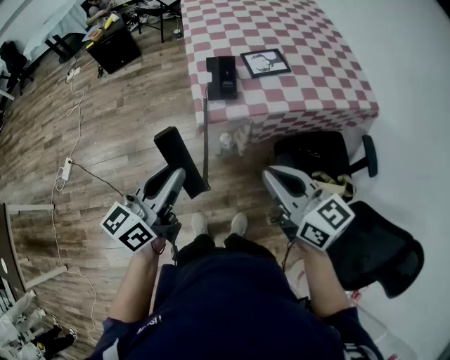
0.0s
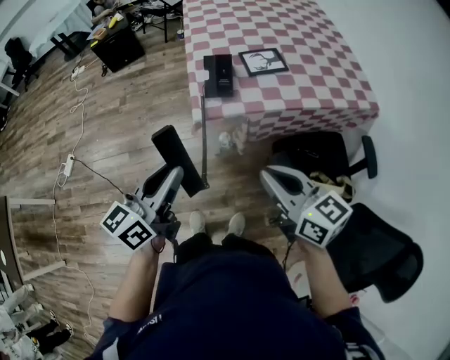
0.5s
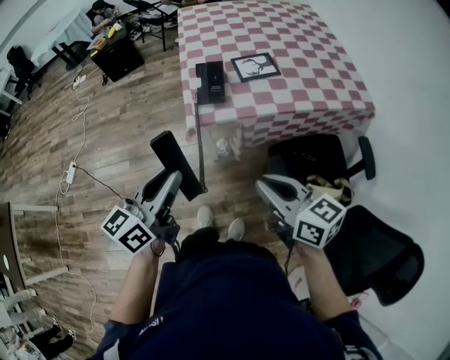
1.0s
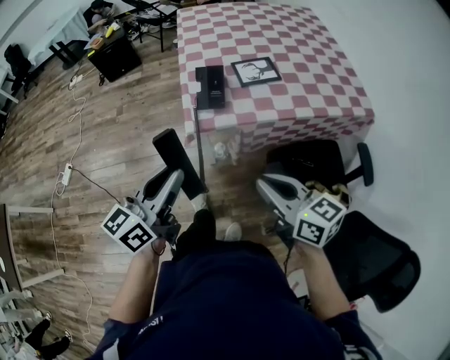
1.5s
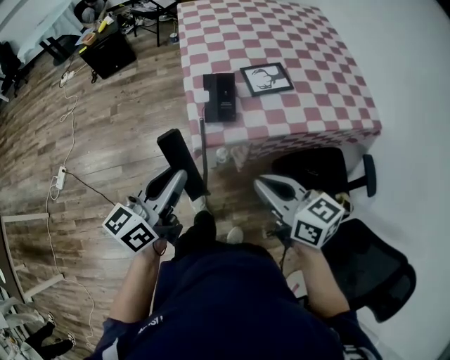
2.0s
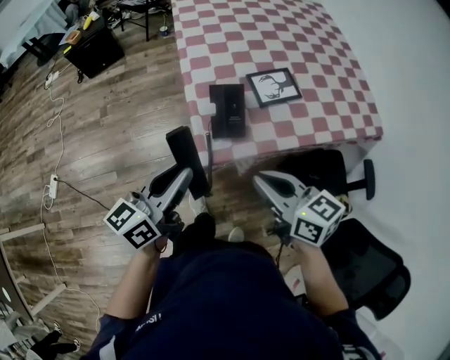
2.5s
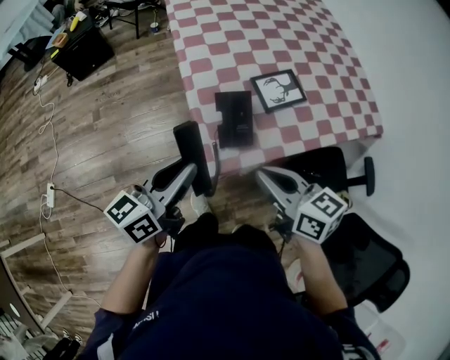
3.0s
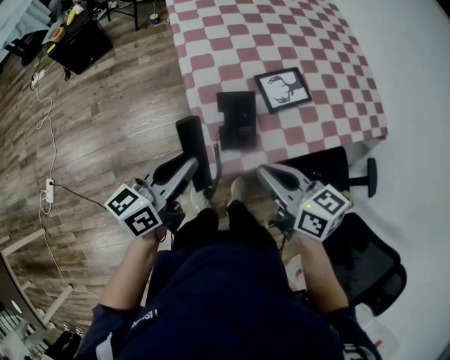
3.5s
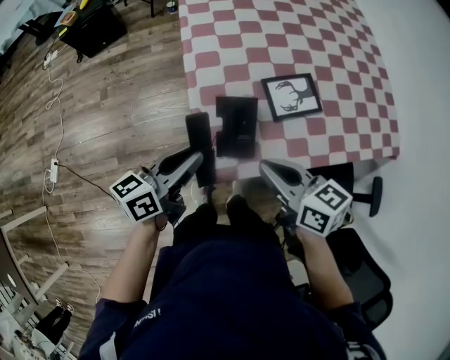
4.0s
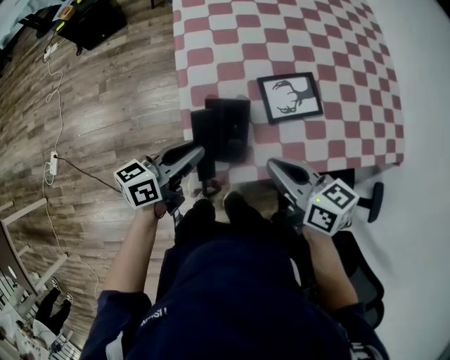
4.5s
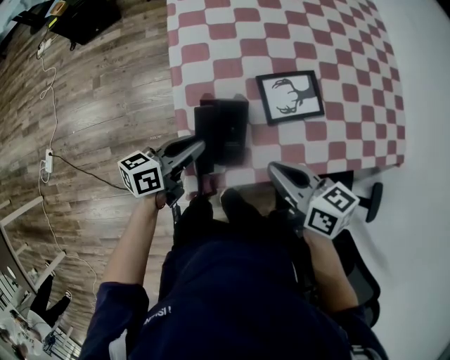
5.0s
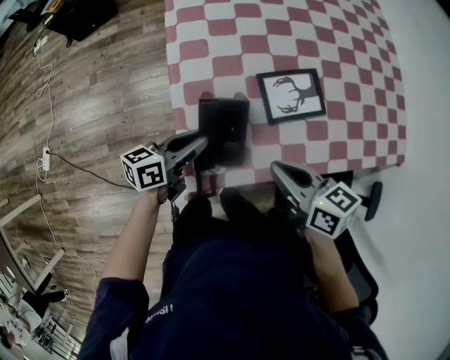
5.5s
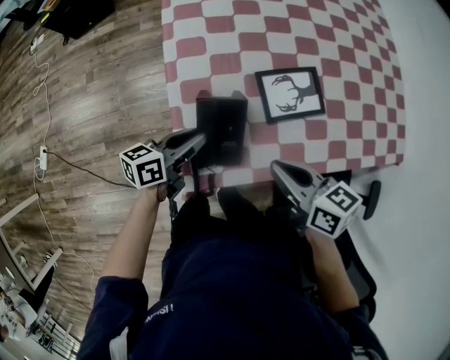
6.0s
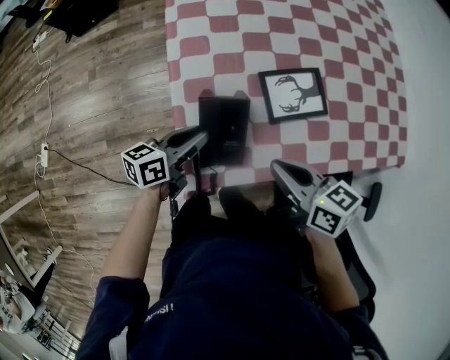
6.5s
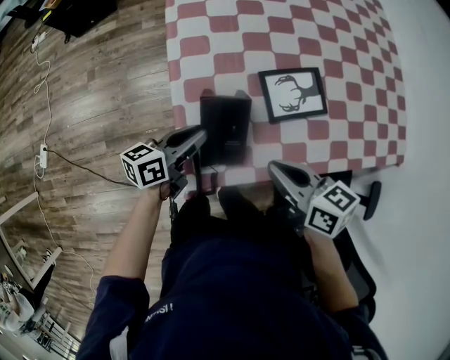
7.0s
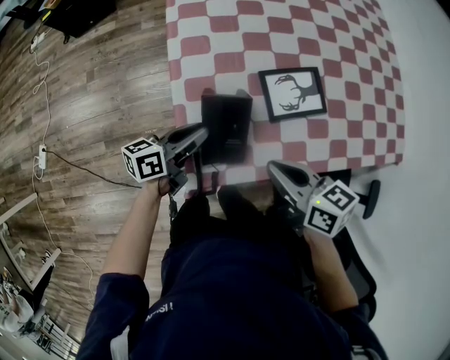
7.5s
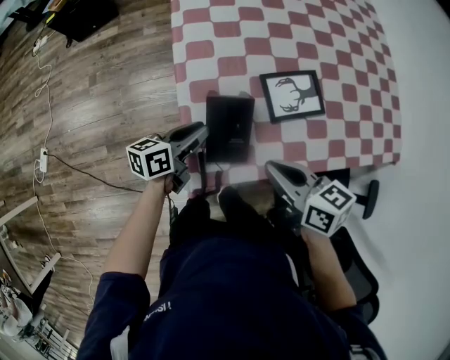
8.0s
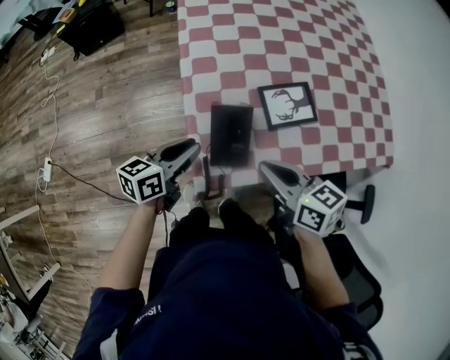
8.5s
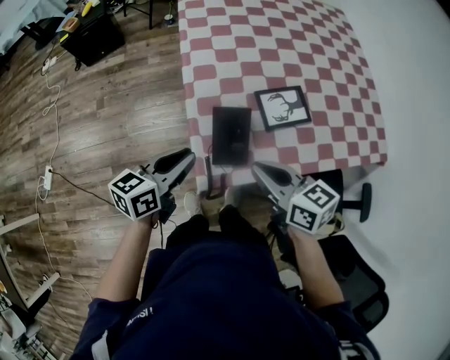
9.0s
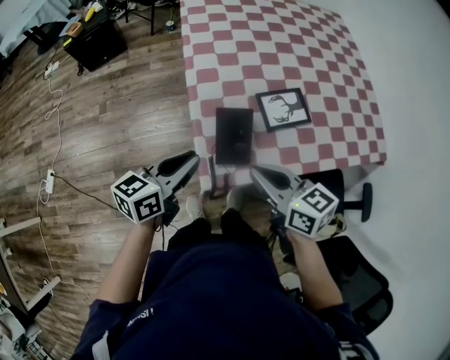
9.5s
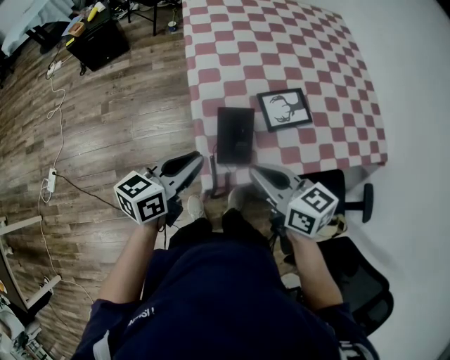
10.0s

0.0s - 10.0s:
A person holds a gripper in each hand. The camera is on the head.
0.0s - 2.0s: The right gripper is displaced forward and downward by approximately 10 cm, while the left gripper is displaced forward by some 10 cm.
2.0s - 4.0s: The left gripper moves forward and downward, roughly 25 cm; the right gripper shifts some 25 cm forward.
4.0s - 6.0s: The right gripper moves to the right and downward, about 10 cm; the left gripper is displaced downward, forward and to the right by roughly 15 cm.
6.0s - 8.0s: The grippers make only small movements.
8.0s - 10.0s: The left gripper is displaced upward and backward by some 20 cm. The right gripper moves upward and to the left, roughly 10 cm.

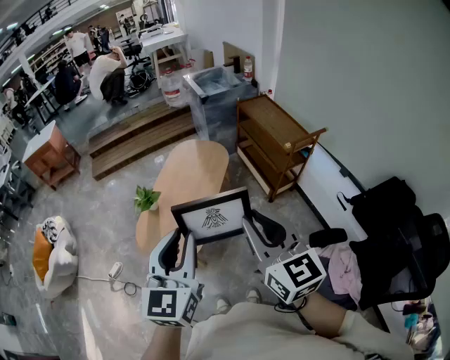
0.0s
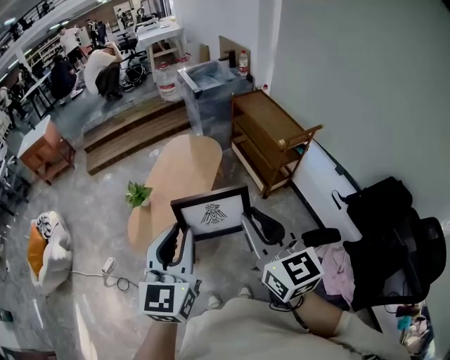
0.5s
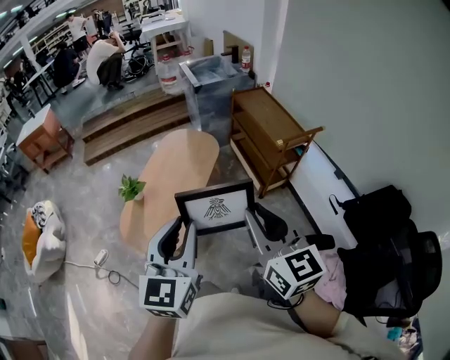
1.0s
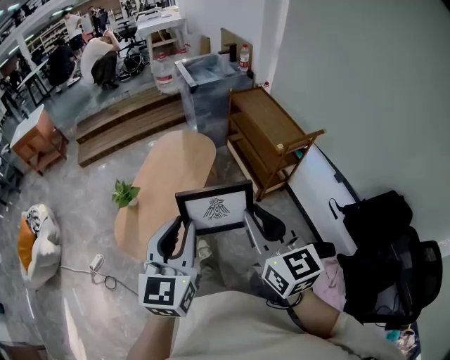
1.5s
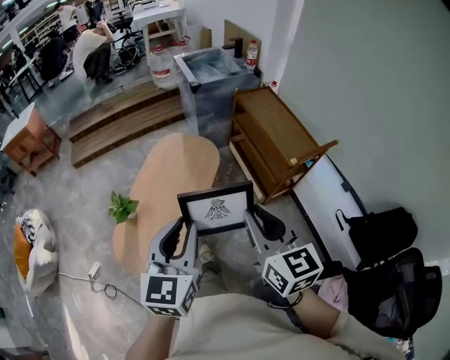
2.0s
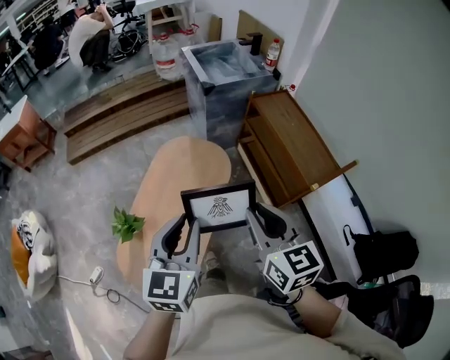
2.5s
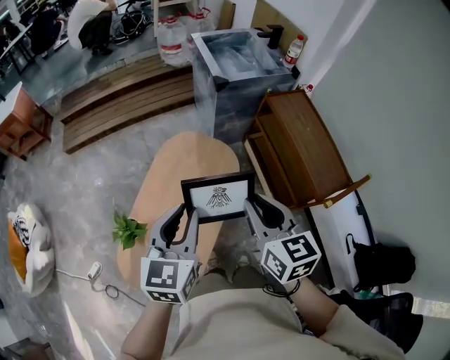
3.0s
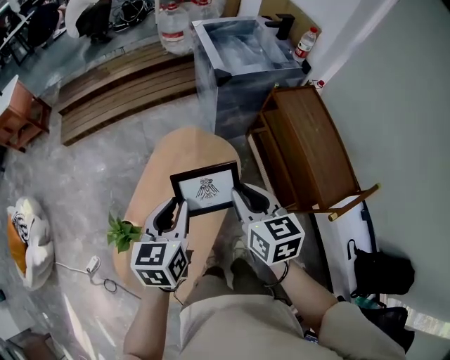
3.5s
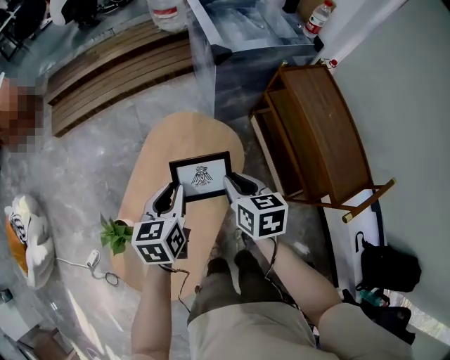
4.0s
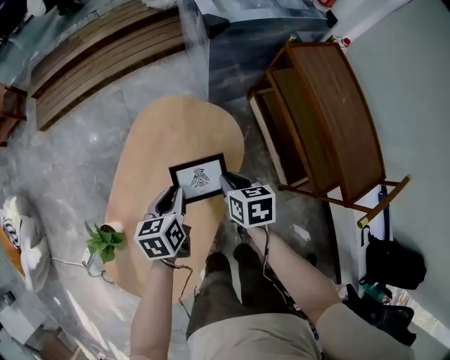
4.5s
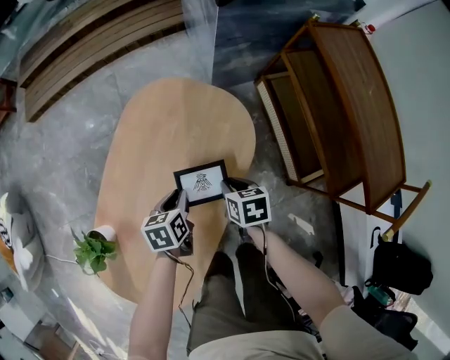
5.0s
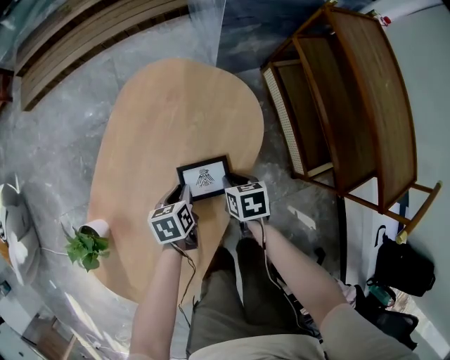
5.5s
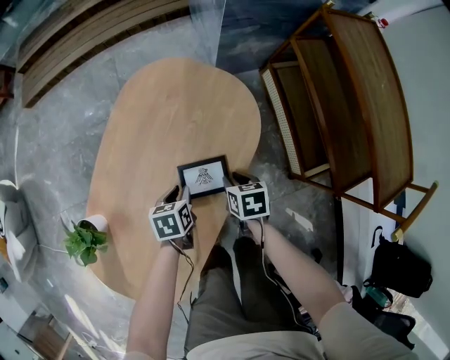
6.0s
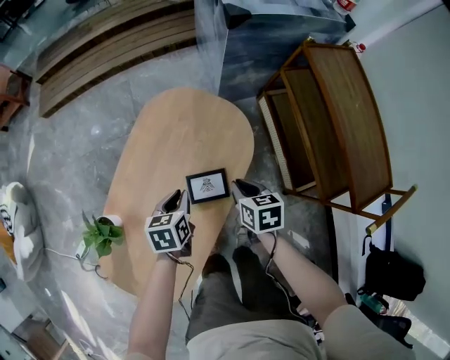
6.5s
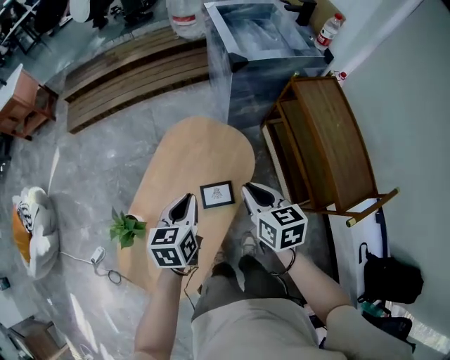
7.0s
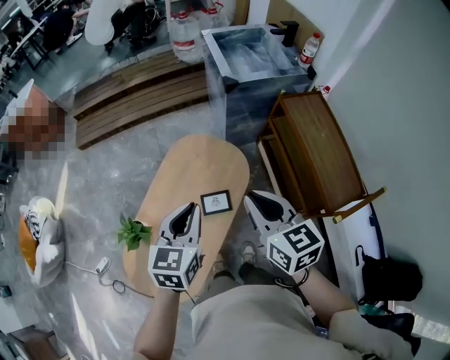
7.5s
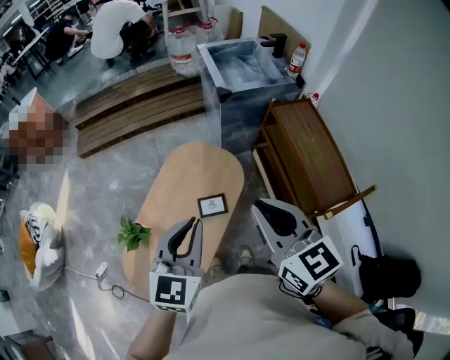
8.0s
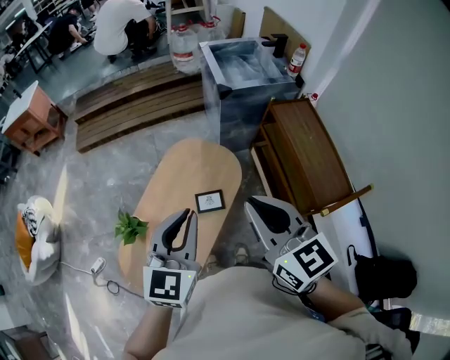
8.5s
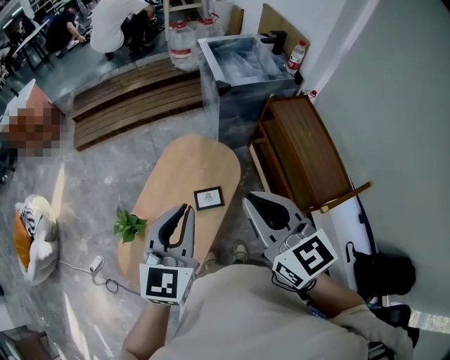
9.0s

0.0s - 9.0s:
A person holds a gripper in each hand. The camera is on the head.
0.0s - 2.0s: Both grippers move forward, about 25 cm.
2.0s - 4.5s: Both grippers are carried forward, approximately 50 cm. Both grippers travel together downward, some 50 cm. The left gripper points its fingers about 30 degrees further downward. Meanwhile the right gripper points its fingers roughly 40 degrees further downward.
4.5s - 7.0s: The grippers both shift upward by about 20 cm.
7.0s - 9.0s: The grippers both shift upward and backward by roughly 30 cm. The left gripper changes its angle by some 30 degrees; the right gripper swivels some 30 degrees.

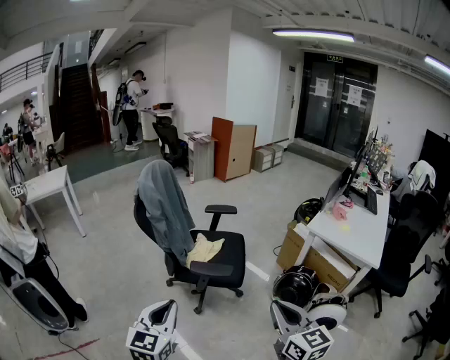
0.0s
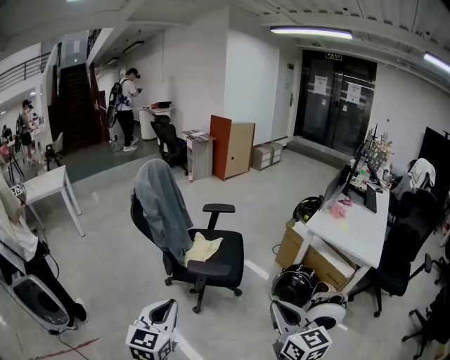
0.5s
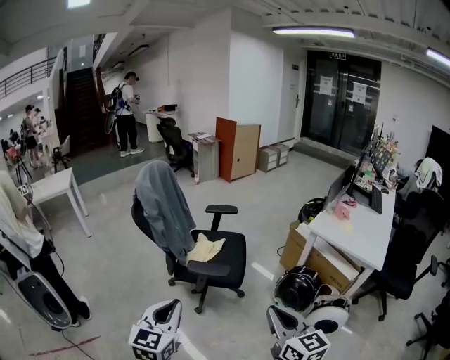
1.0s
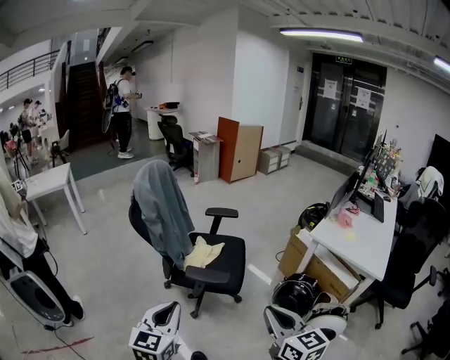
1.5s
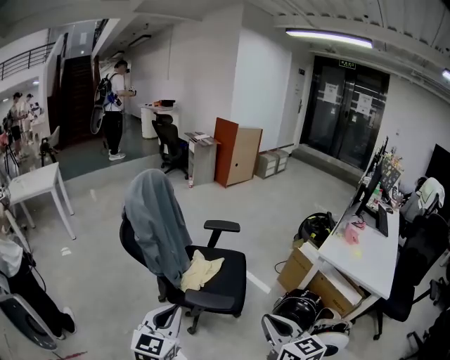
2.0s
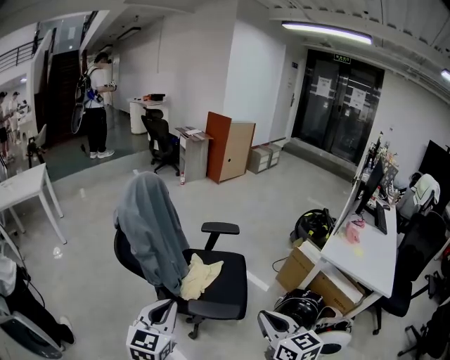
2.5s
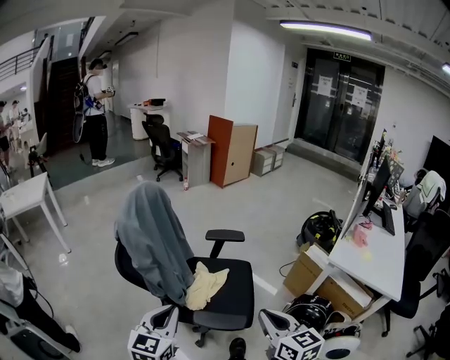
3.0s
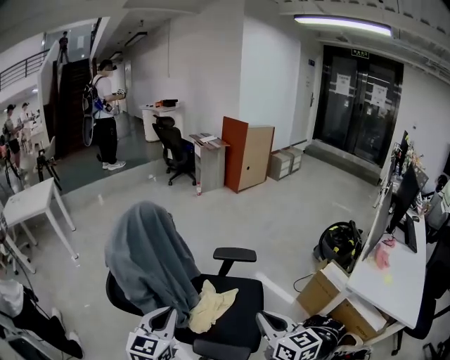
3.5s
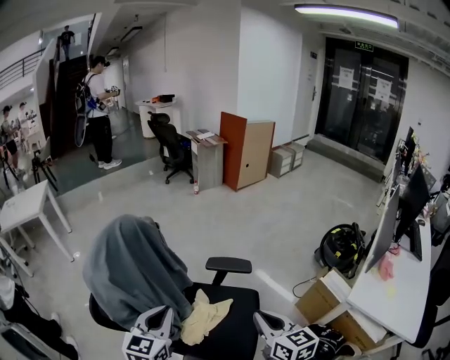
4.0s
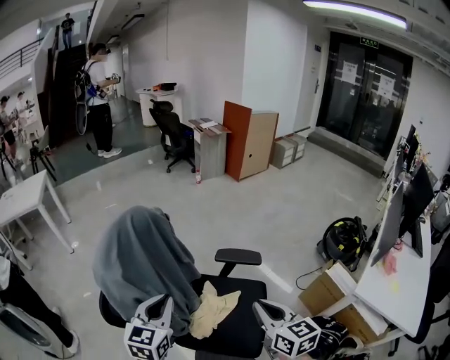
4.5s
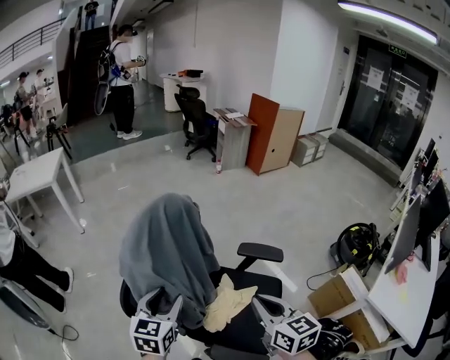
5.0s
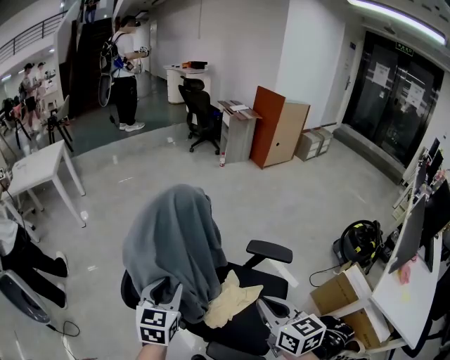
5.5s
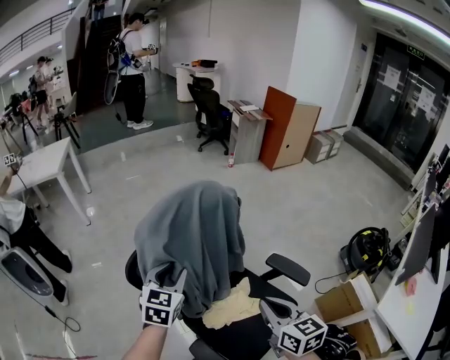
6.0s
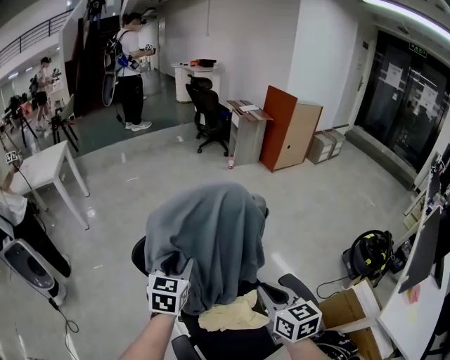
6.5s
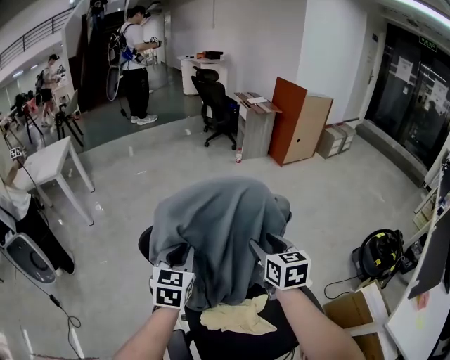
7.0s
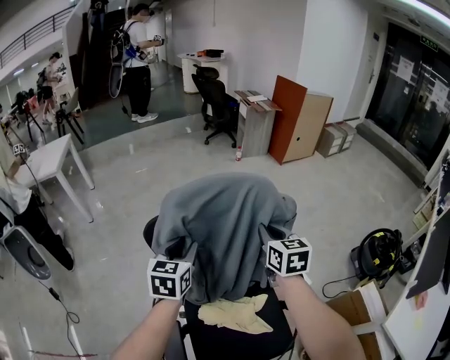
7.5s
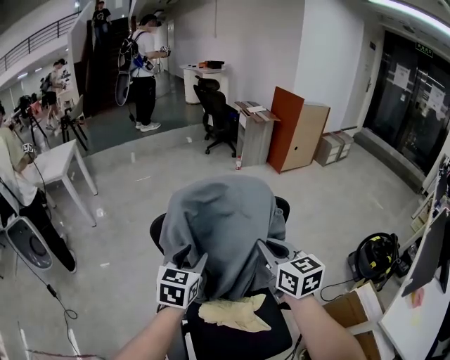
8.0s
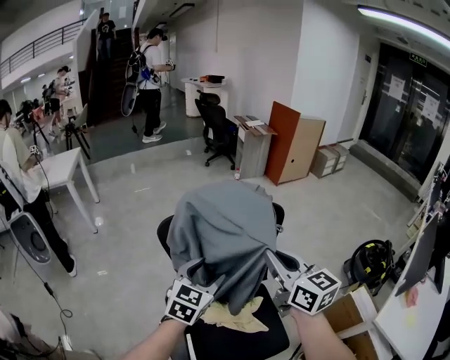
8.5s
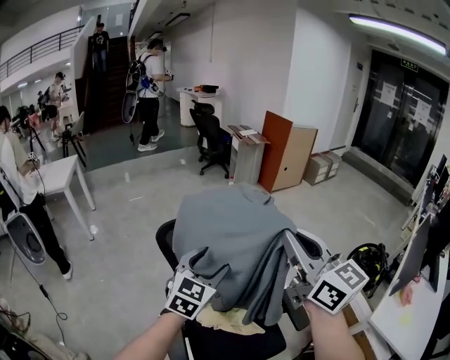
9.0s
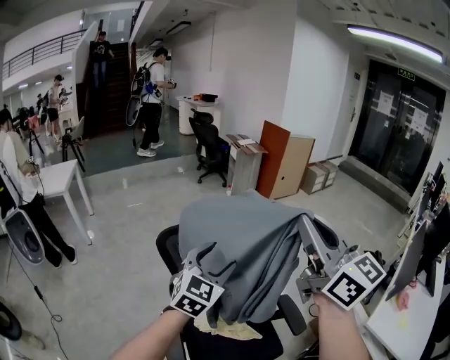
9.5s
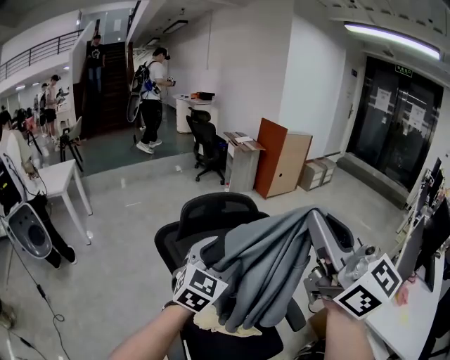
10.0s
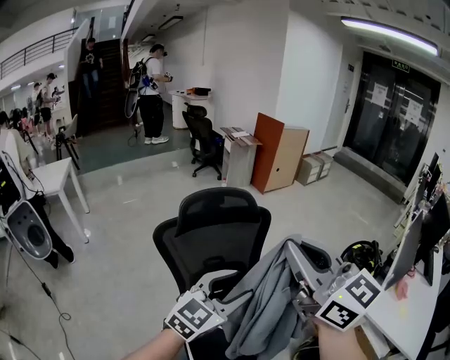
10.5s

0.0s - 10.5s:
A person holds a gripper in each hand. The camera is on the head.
0.0s - 2.0s: Both grippers move forward, some 20 cm.
2.0s - 4.0s: Both grippers move forward, approximately 40 cm.
4.0s - 6.5s: Both grippers travel together forward and to the left, approximately 30 cm. The left gripper opens its fingers.
6.5s - 8.5s: The left gripper travels backward and to the right by some 15 cm. Meanwhile the right gripper heads upward, covering about 15 cm, reaches roughly 20 cm forward, then returns, rotates some 20 degrees, and opens and closes again.
8.5s - 10.5s: The left gripper shifts approximately 15 cm backward, upward and to the right, and changes its angle by approximately 30 degrees, while the right gripper is displaced upward and backward by approximately 20 cm.
